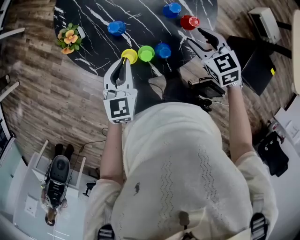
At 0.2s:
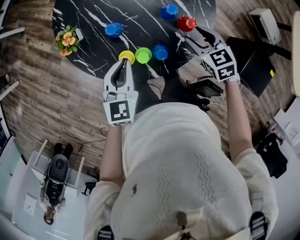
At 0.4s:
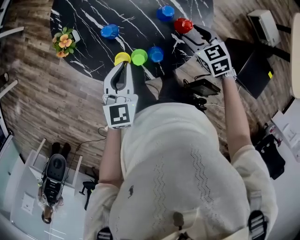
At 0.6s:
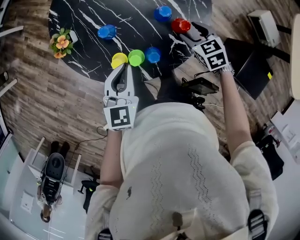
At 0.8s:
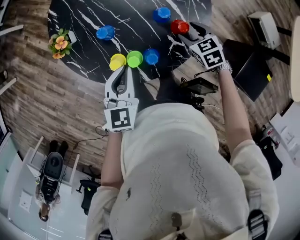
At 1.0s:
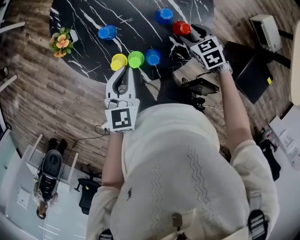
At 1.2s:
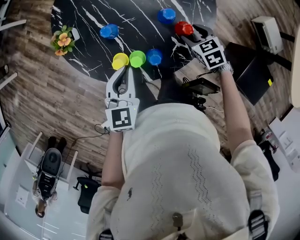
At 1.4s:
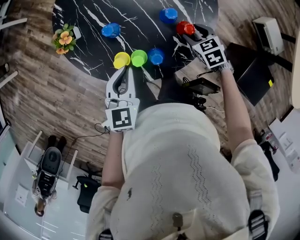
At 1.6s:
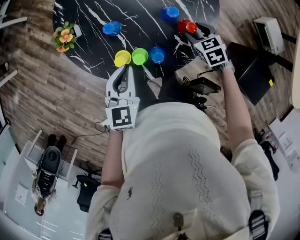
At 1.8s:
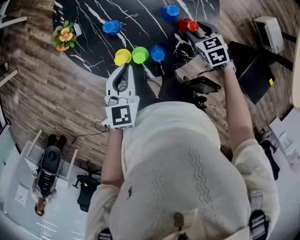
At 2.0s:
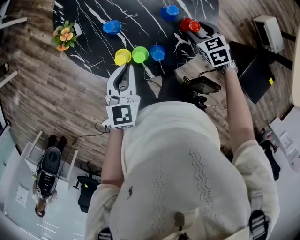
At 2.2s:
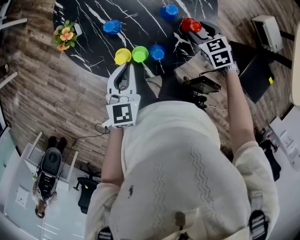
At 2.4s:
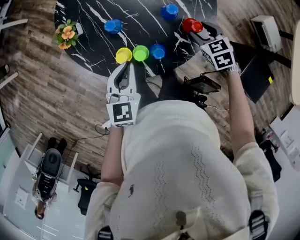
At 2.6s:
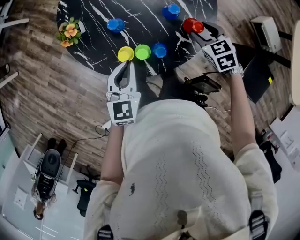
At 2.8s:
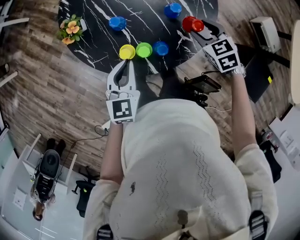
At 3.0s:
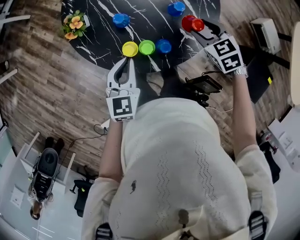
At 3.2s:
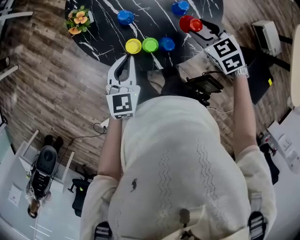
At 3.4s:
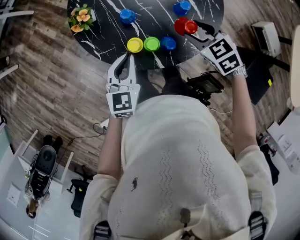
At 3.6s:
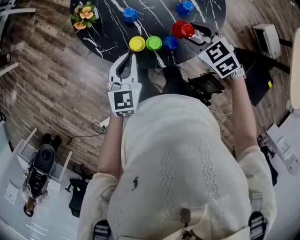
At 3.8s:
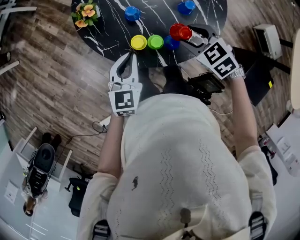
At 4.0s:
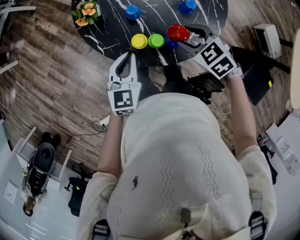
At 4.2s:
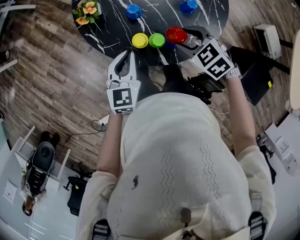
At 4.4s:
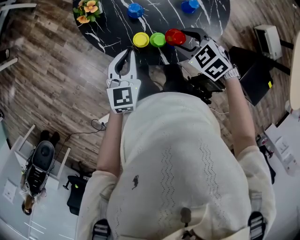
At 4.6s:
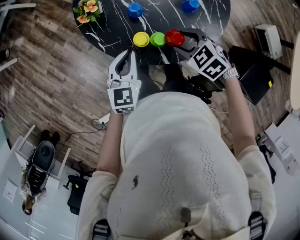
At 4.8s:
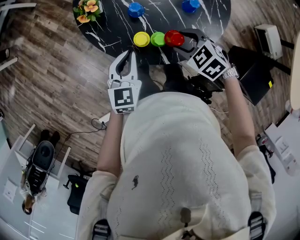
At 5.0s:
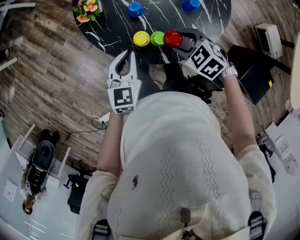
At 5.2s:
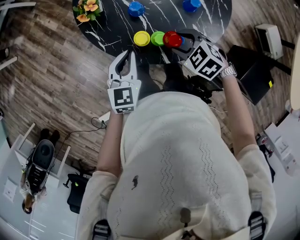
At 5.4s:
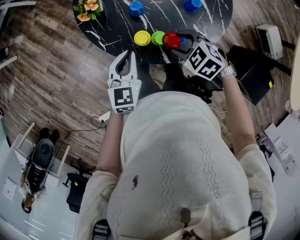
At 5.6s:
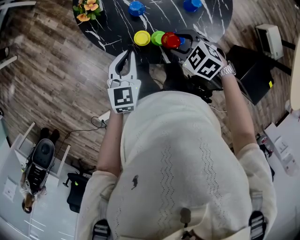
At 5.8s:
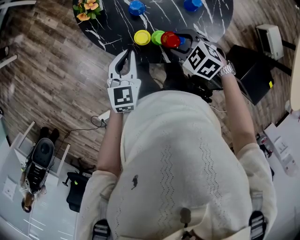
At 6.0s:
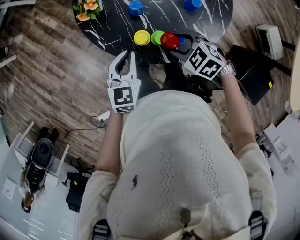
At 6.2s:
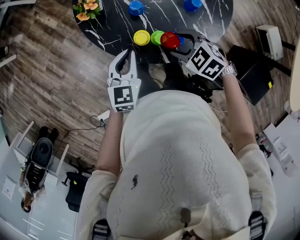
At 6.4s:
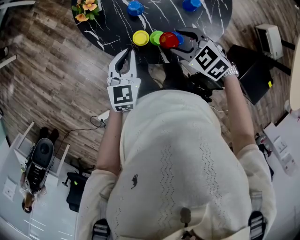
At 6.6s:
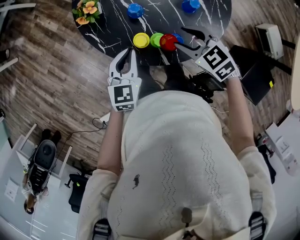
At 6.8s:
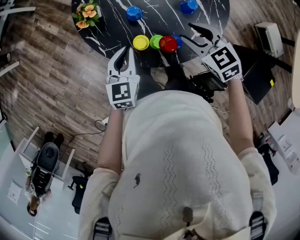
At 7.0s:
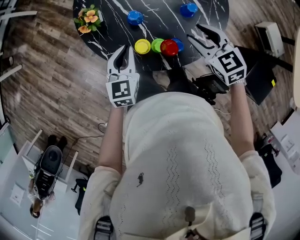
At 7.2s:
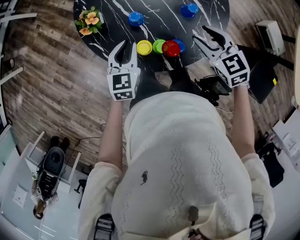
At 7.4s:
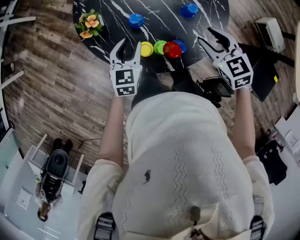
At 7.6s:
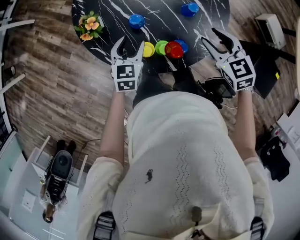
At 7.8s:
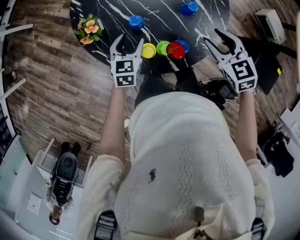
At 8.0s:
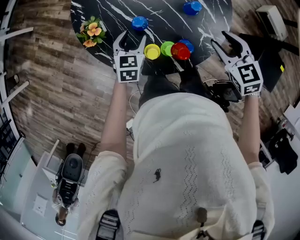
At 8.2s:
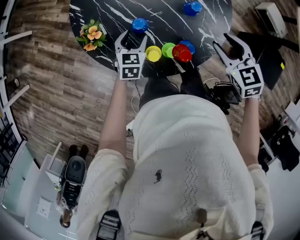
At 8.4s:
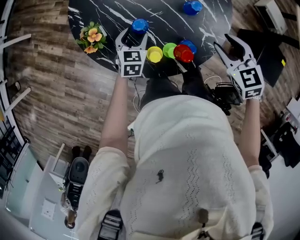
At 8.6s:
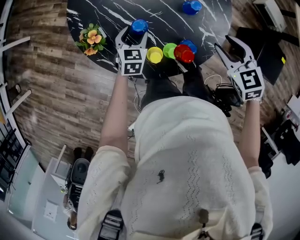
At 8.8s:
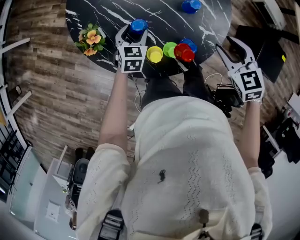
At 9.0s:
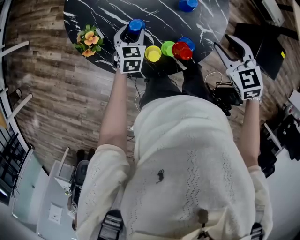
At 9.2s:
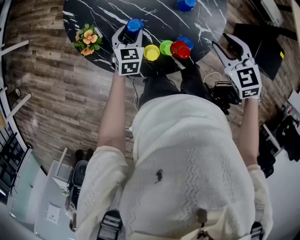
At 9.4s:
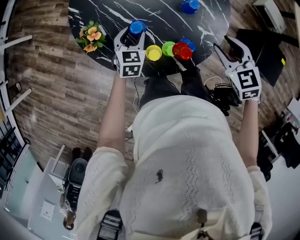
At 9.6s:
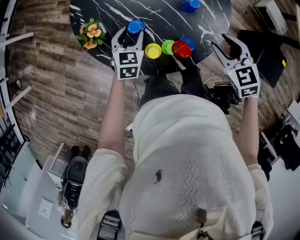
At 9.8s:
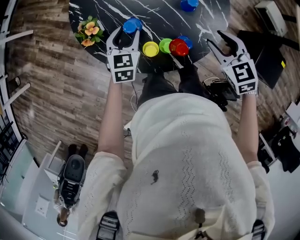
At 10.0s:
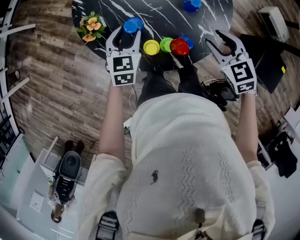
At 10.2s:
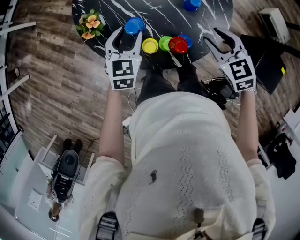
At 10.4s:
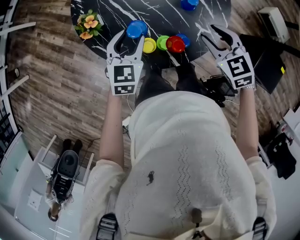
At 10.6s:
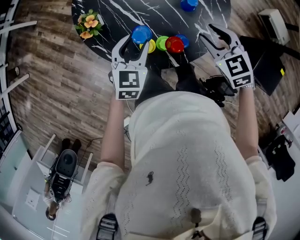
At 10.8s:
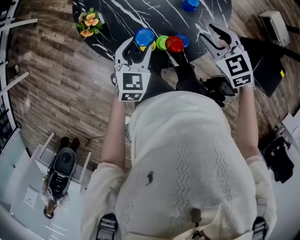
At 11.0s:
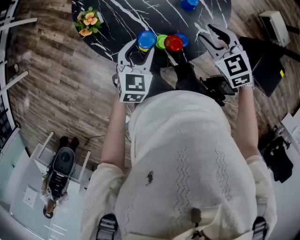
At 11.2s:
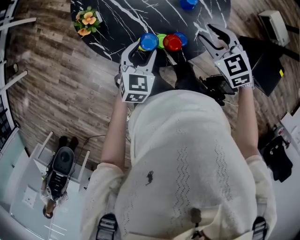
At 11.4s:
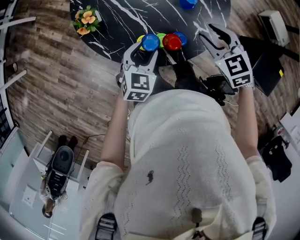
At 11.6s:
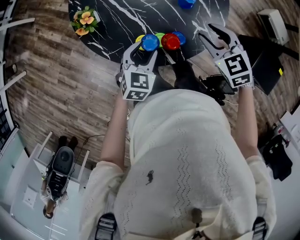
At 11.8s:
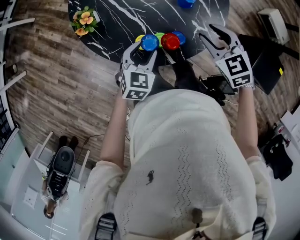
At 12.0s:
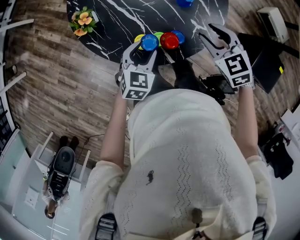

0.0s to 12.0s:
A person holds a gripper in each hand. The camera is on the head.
0.0s to 1.6s: The right gripper heads downward and to the right, covering approximately 10 cm.
1.6s to 3.0s: The right gripper heads upward and to the left, covering about 15 cm. The left gripper moves approximately 5 cm.
3.0s to 4.4s: The left gripper shifts about 5 cm to the left. The right gripper goes roughly 15 cm to the left, and turns by some 20 degrees.
4.4s to 6.0s: The grippers make only small movements.
6.0s to 7.6s: The left gripper shifts by approximately 10 cm, and opens. The right gripper ends up roughly 15 cm from where it was, and turns by about 40 degrees.
7.6s to 9.0s: The left gripper goes some 10 cm forward and downward.
9.0s to 10.4s: The left gripper goes roughly 15 cm upward and backward.
10.4s to 12.0s: The left gripper shifts some 10 cm backward, to the right and downward.

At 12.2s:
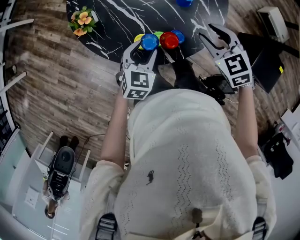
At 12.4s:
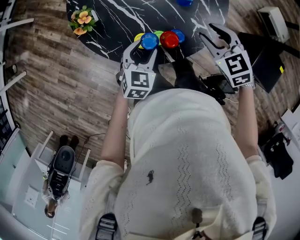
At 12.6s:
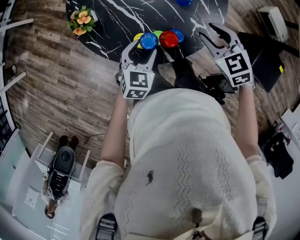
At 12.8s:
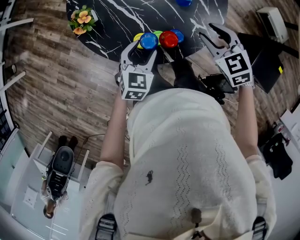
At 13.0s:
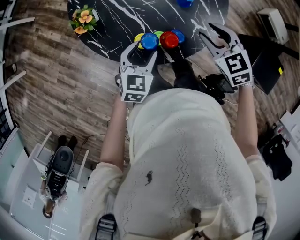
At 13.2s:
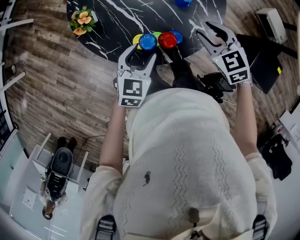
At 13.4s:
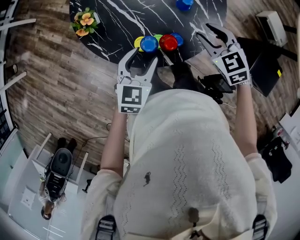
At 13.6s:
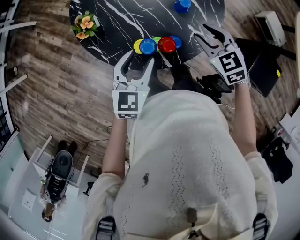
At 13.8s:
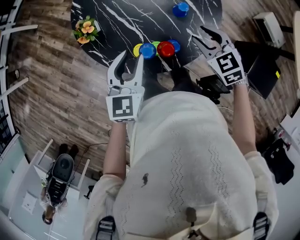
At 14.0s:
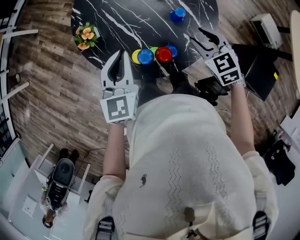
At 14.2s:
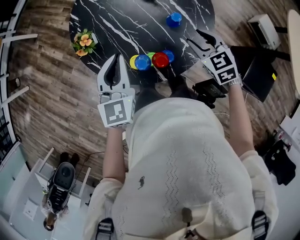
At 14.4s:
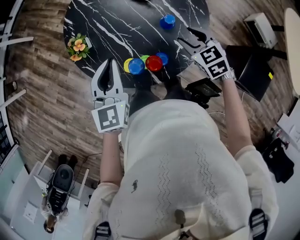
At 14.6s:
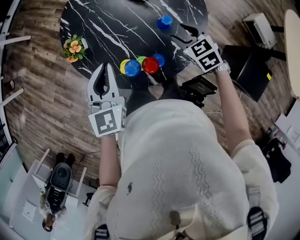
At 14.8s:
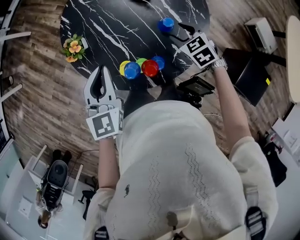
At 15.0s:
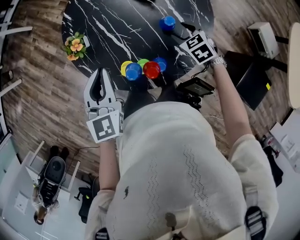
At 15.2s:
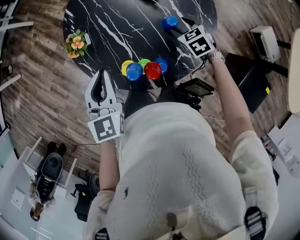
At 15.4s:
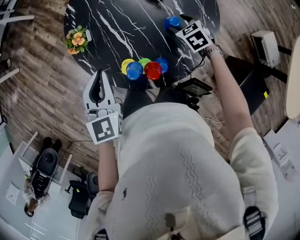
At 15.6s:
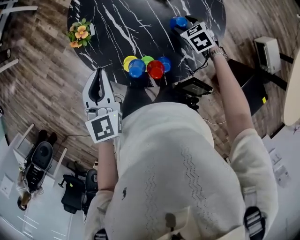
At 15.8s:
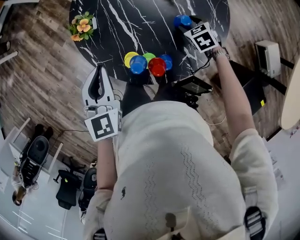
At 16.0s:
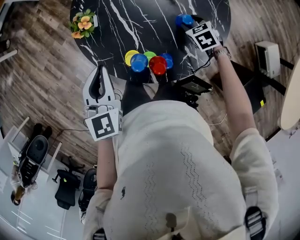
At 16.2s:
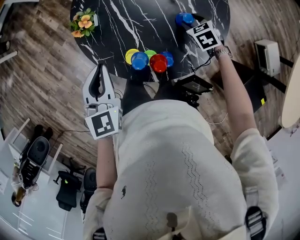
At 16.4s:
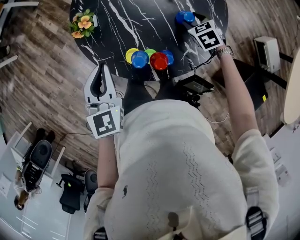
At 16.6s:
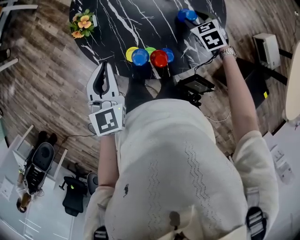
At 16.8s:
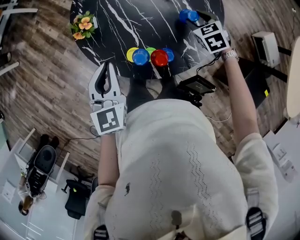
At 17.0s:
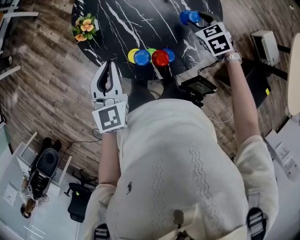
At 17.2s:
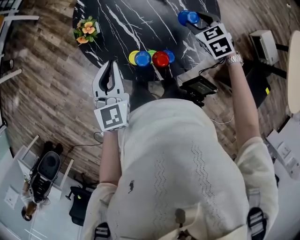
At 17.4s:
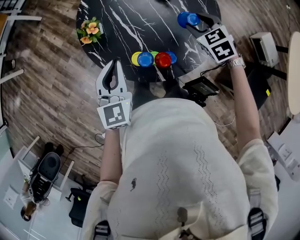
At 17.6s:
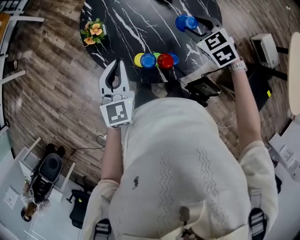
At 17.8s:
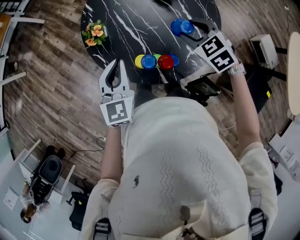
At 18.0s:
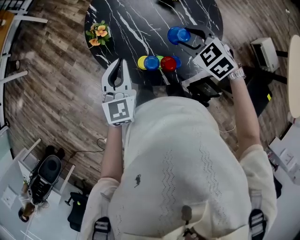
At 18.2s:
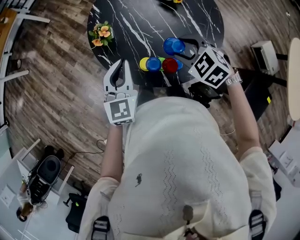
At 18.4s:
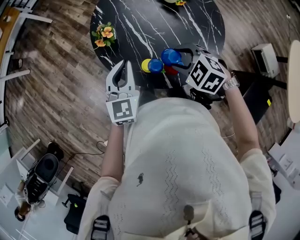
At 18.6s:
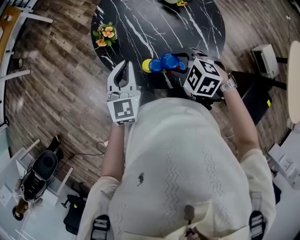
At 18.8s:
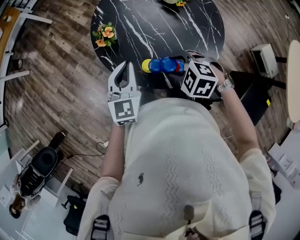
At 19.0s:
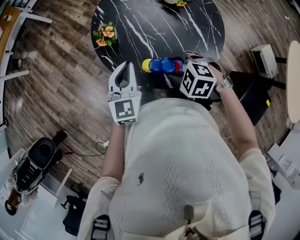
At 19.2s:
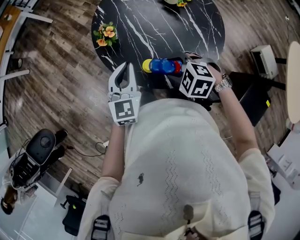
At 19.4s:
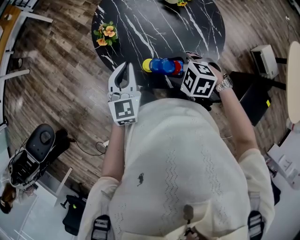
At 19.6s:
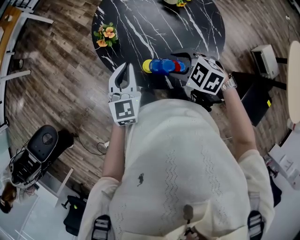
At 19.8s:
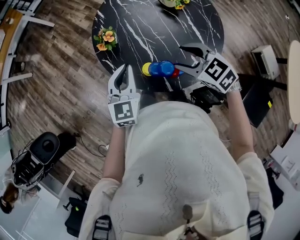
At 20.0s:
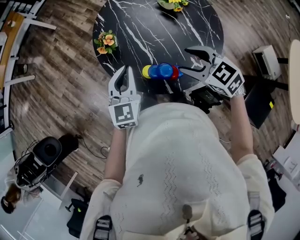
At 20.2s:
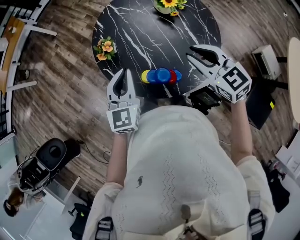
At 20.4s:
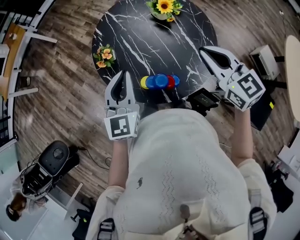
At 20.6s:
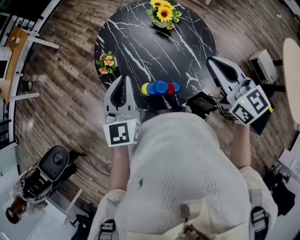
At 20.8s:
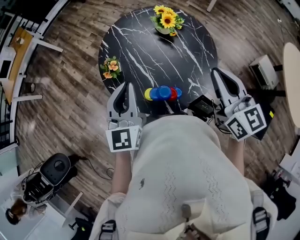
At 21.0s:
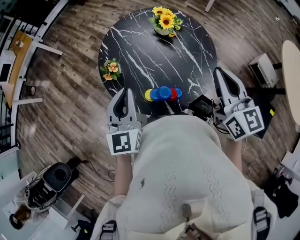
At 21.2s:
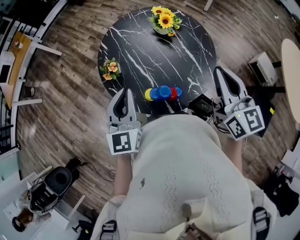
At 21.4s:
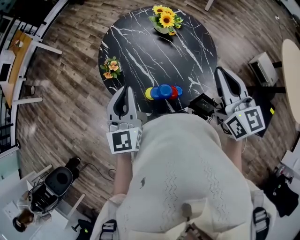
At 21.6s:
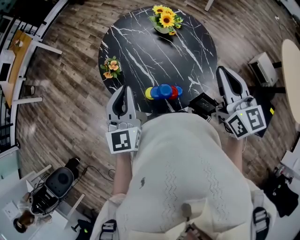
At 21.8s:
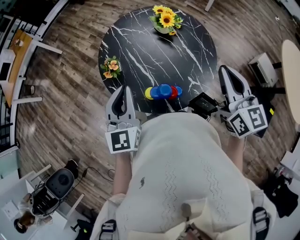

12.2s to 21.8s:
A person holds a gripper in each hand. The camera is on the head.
12.2s to 13.8s: The left gripper travels upward by about 15 cm, and changes its angle by roughly 30 degrees.
13.8s to 15.4s: The left gripper shifts some 5 cm forward, rotates about 20 degrees, and closes its fingers. The right gripper heads forward and downward, covering some 20 cm.
15.4s to 17.0s: The right gripper shifts roughly 10 cm upward and backward.
17.0s to 18.6s: The right gripper travels to the left, backward and upward by about 25 cm, and swivels roughly 40 degrees.
18.6s to 20.2s: The right gripper shifts roughly 15 cm upward and to the right, tips its fingers upward by about 30 degrees, and closes up. The left gripper ends up roughly 5 cm from where it was.
20.2s to 21.8s: The right gripper moves upward, to the right and backward, approximately 15 cm, turns by some 40 degrees, and closes up. Meanwhile the left gripper is displaced upward by approximately 10 cm.

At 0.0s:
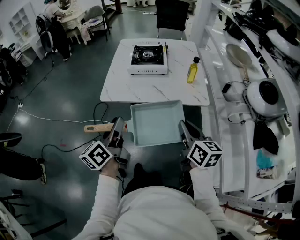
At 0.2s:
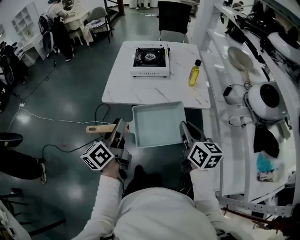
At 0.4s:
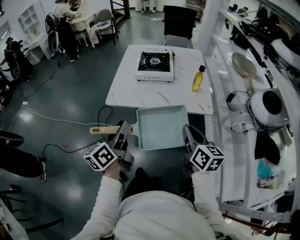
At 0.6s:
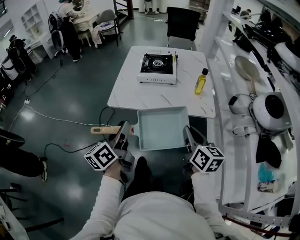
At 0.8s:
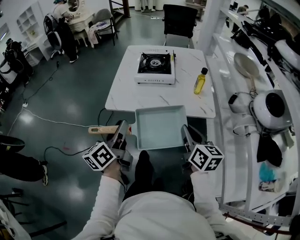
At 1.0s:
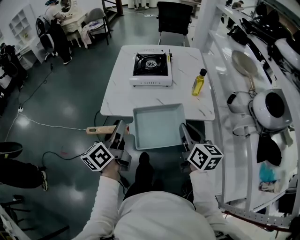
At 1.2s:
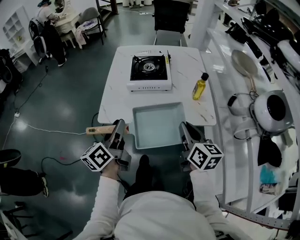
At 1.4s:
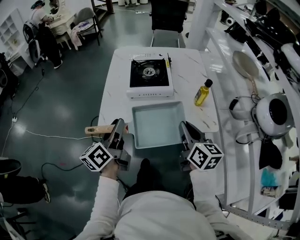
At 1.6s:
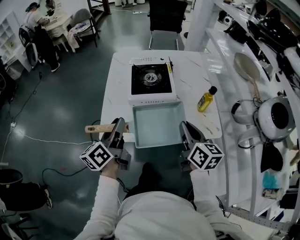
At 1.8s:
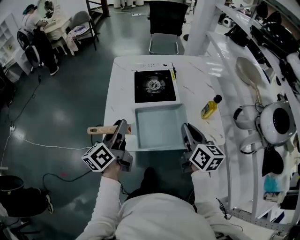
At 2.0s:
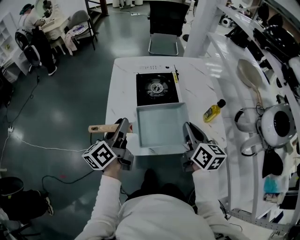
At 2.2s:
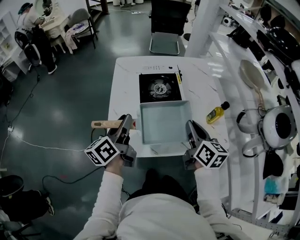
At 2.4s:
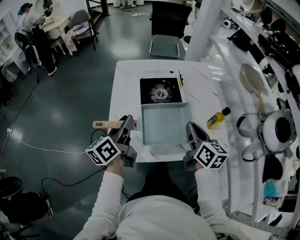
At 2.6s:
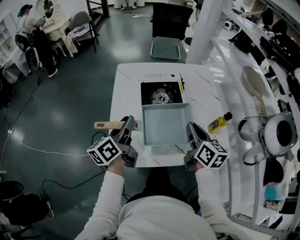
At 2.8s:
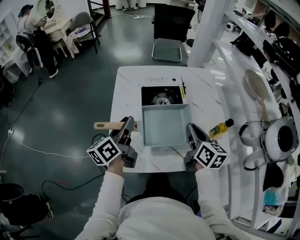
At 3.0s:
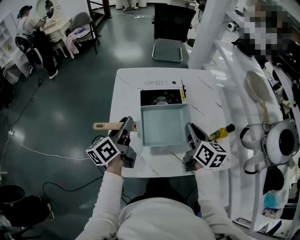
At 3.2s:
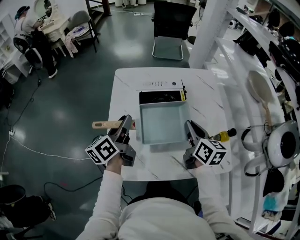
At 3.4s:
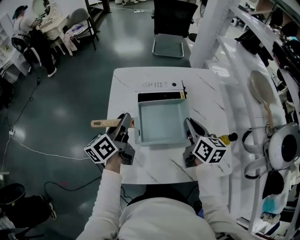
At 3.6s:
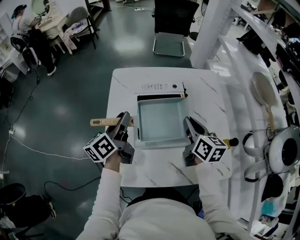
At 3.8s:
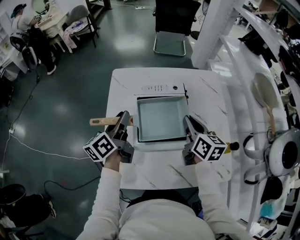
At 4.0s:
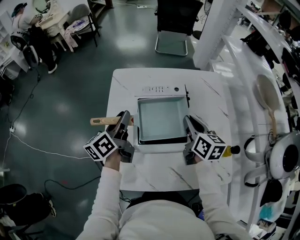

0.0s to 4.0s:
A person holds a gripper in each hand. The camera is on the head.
0.0s to 1.4s: The two grippers go approximately 20 cm forward.
1.4s to 2.6s: Both grippers move forward, some 20 cm.
2.6s to 4.0s: Both grippers travel together forward, approximately 15 cm.
